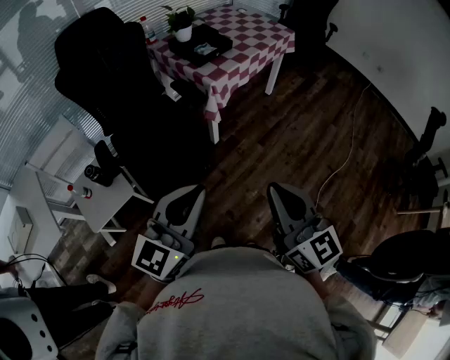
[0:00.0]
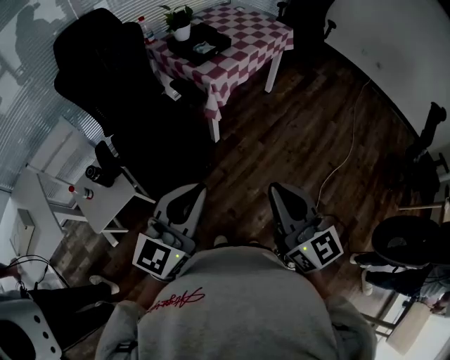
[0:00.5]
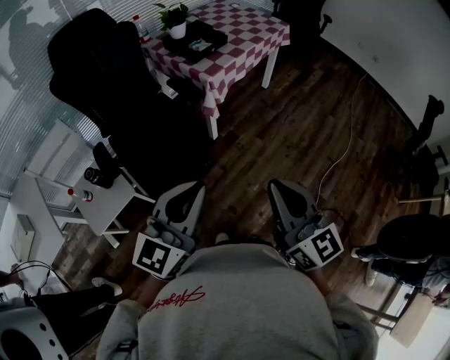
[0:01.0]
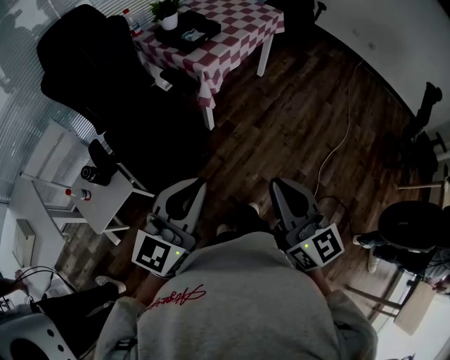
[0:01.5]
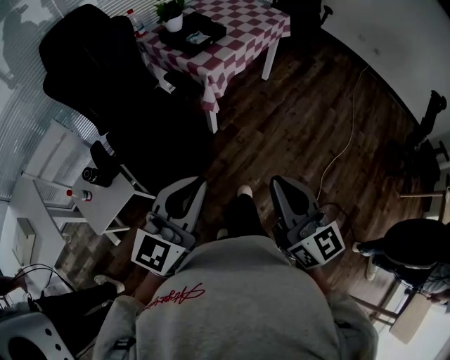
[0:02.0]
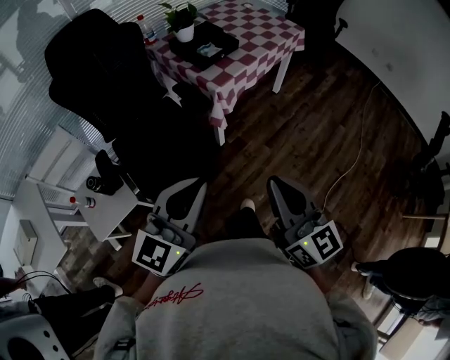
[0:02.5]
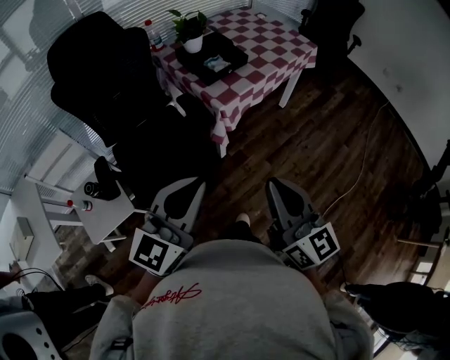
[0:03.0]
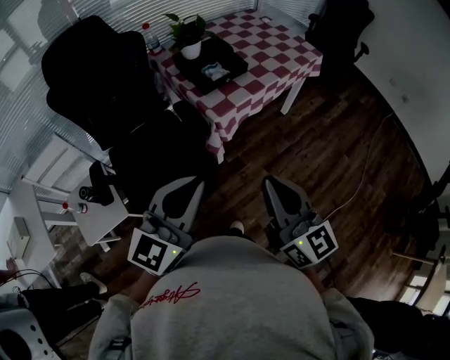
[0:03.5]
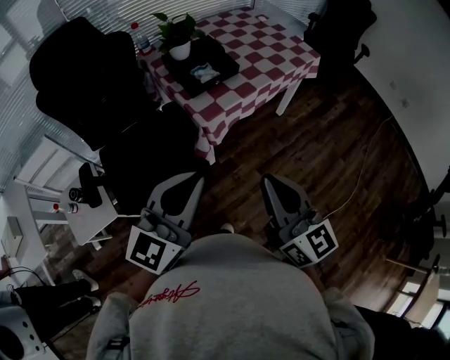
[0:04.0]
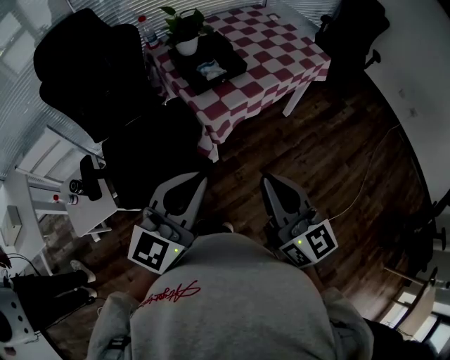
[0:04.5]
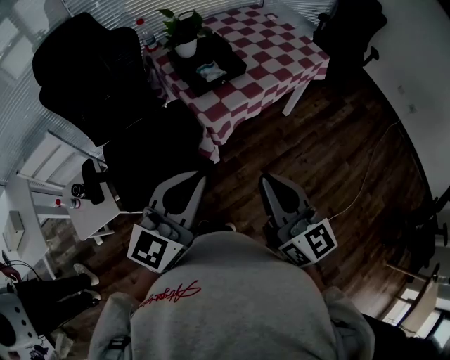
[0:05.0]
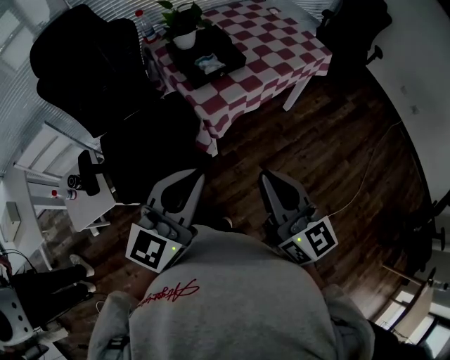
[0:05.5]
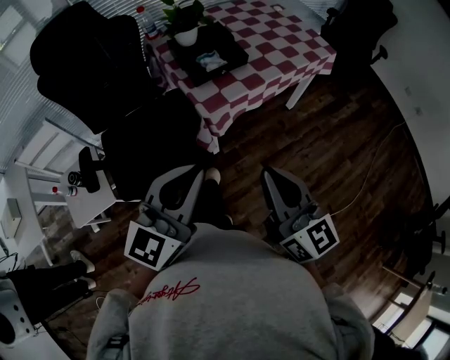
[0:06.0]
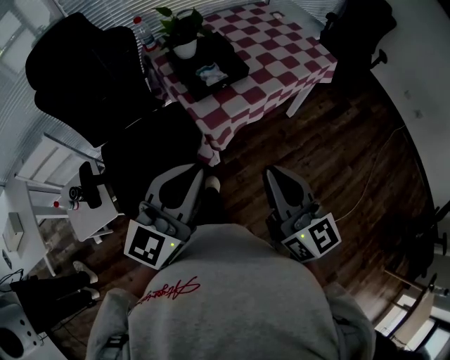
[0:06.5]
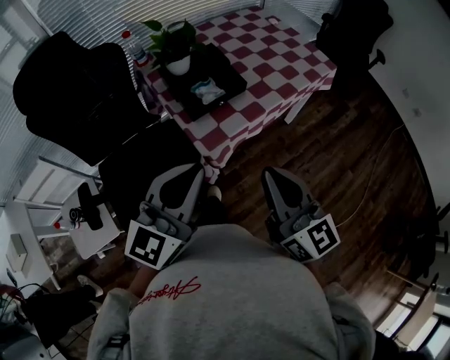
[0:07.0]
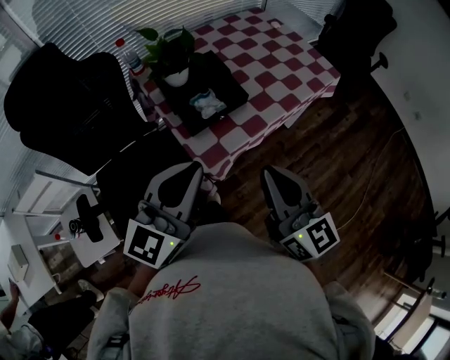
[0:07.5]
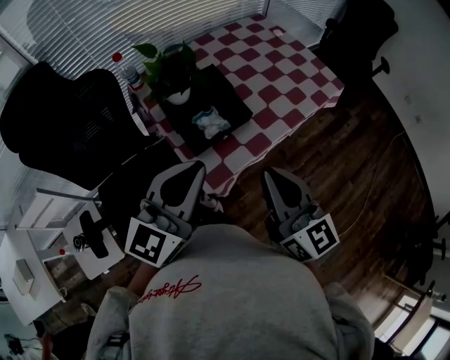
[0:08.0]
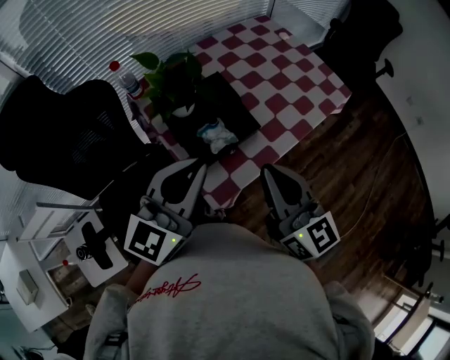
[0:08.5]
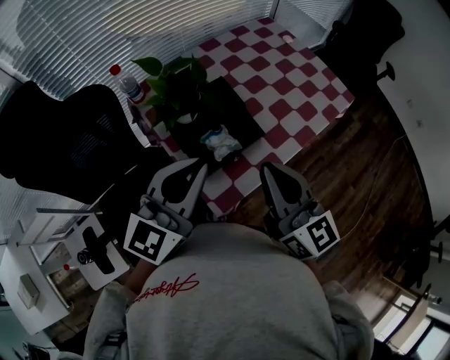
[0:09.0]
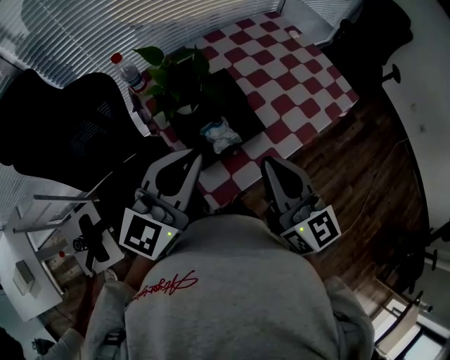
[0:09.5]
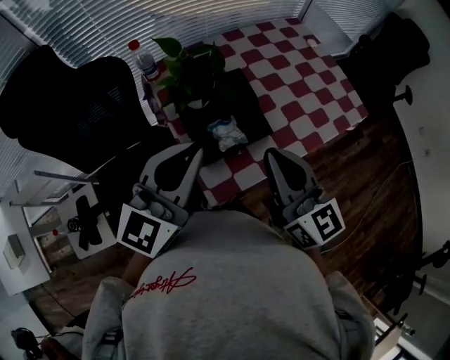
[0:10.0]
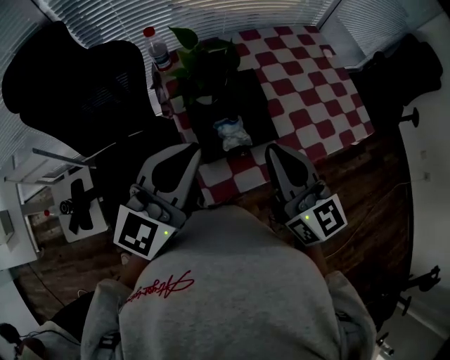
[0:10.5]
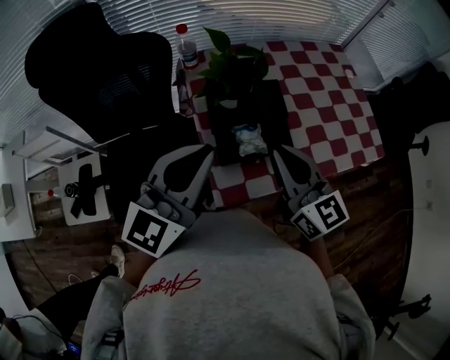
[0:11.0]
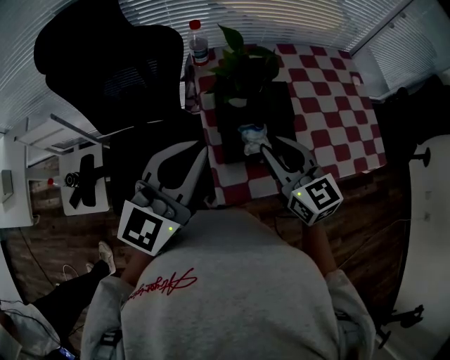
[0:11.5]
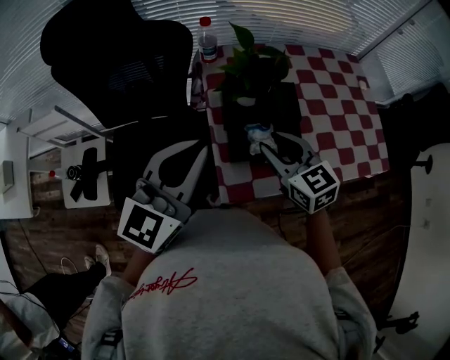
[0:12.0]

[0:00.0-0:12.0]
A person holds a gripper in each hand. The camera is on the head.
0:00.0 to 0:02.0: The grippers stay close to where they were, moving slightly.
0:02.0 to 0:04.0: Both grippers travel together forward, about 30 cm.
0:04.0 to 0:06.0: There are only small adjustments of the grippers.
0:06.0 to 0:08.0: Both grippers move forward, approximately 25 cm.
0:08.0 to 0:10.0: The two grippers go about 10 cm forward.
0:10.0 to 0:12.0: The left gripper is displaced to the left by about 10 cm, while the right gripper heads downward, forward and to the left, covering roughly 15 cm, turns by about 40 degrees, and opens its fingers.

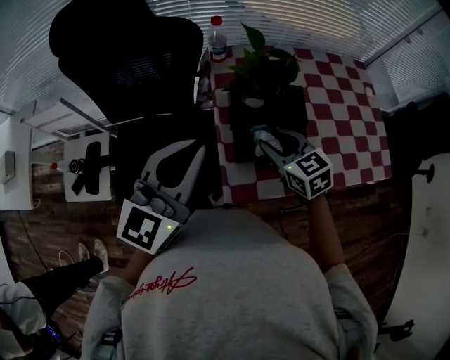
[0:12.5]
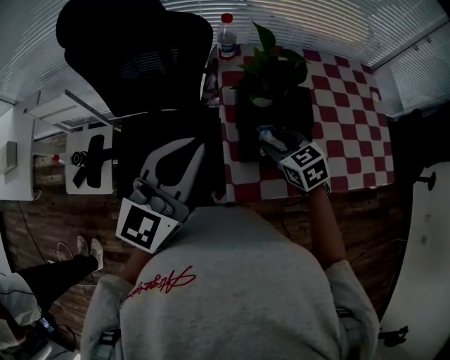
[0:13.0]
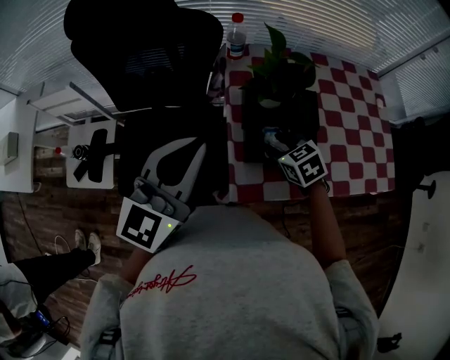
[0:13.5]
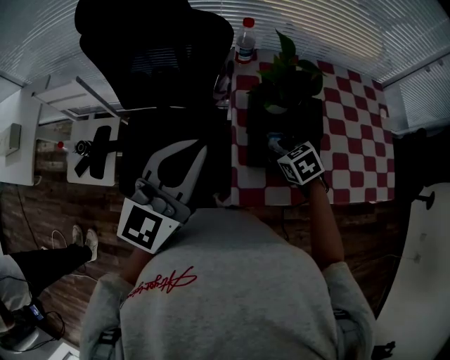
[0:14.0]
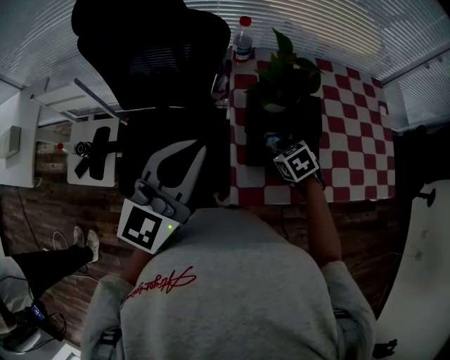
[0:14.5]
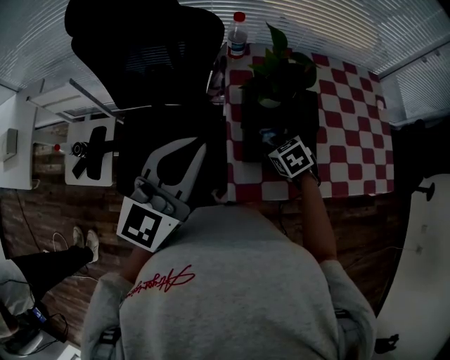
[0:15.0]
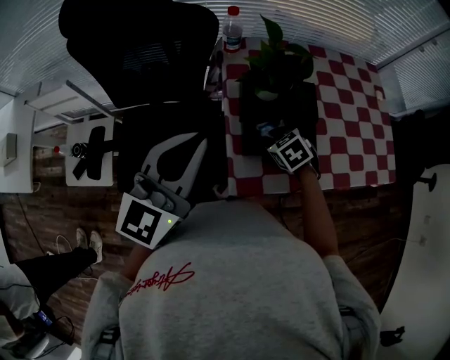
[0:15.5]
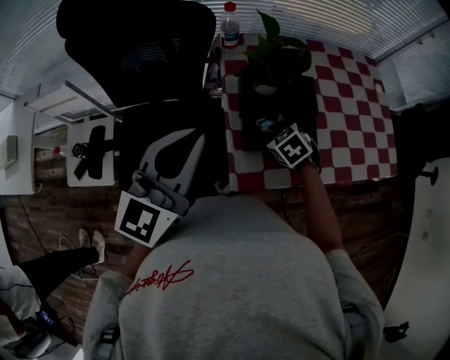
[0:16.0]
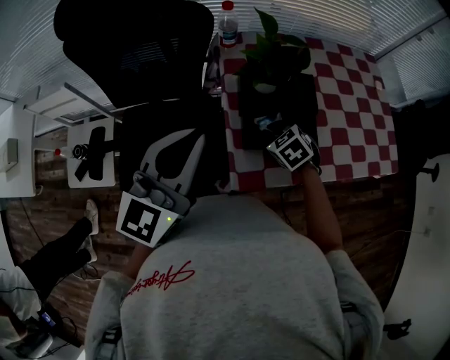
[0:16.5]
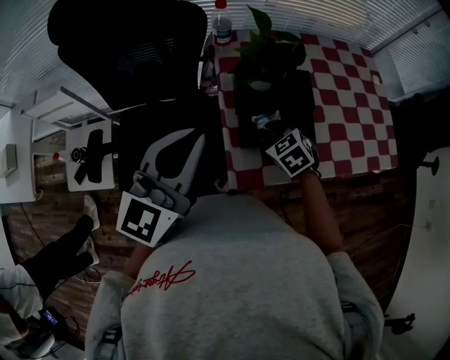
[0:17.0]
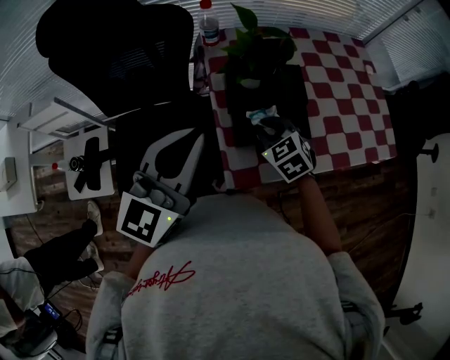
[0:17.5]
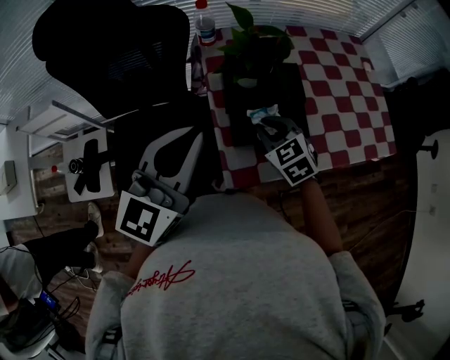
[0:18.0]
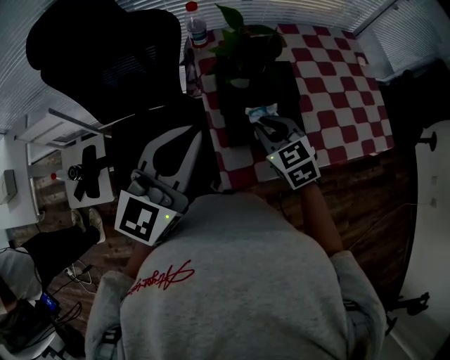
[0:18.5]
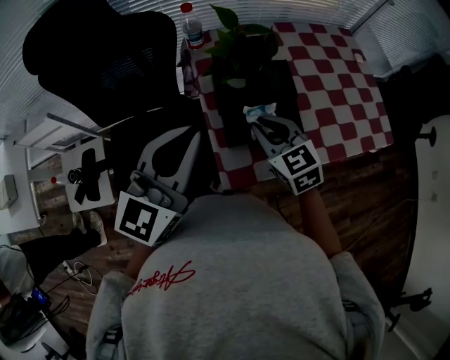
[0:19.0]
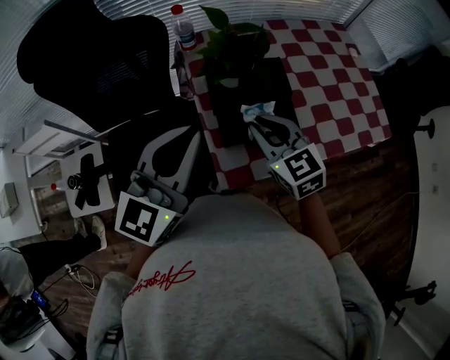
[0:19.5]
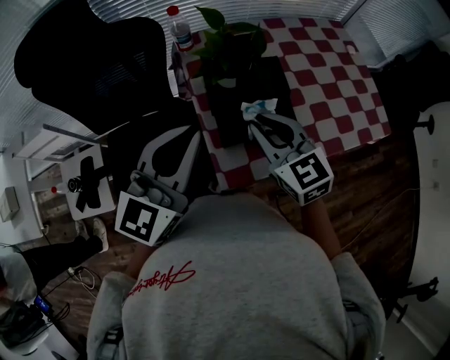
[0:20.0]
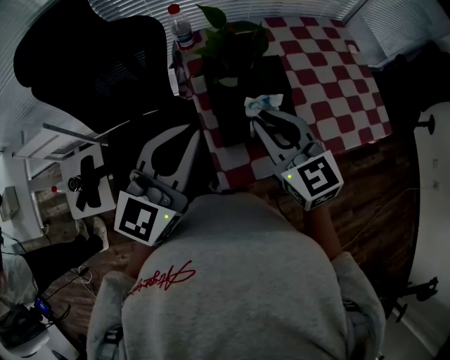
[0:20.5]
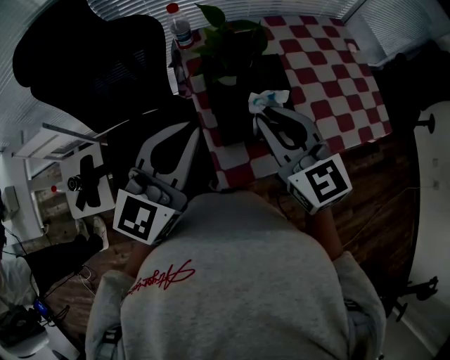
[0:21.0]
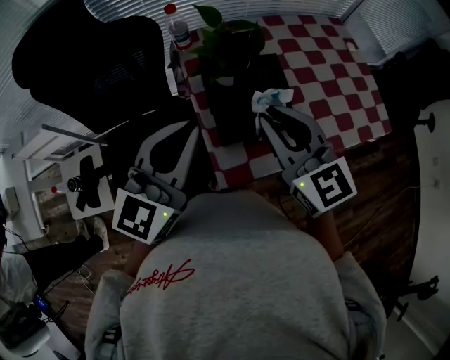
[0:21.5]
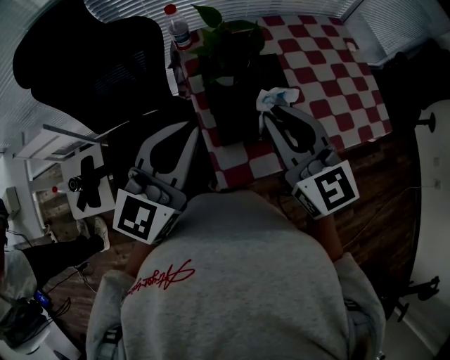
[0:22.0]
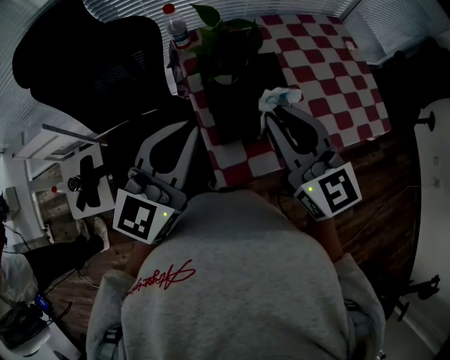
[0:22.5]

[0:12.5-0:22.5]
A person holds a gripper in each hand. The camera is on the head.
0:12.5 to 0:14.5: The right gripper moves downward, approximately 10 cm, and rotates about 30 degrees.
0:14.5 to 0:16.5: The right gripper closes its fingers.
0:16.5 to 0:18.5: The right gripper goes about 10 cm upward, and swivels roughly 20 degrees.
0:18.5 to 0:20.5: The right gripper goes approximately 10 cm upward, and swivels approximately 20 degrees.
0:20.5 to 0:22.5: The right gripper travels upward by some 5 cm.

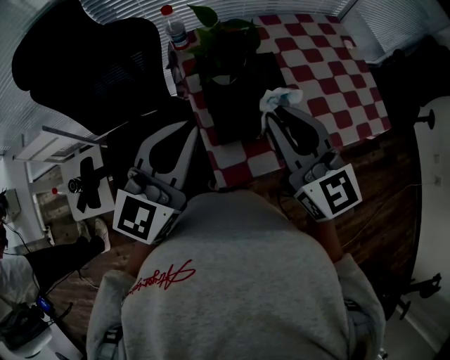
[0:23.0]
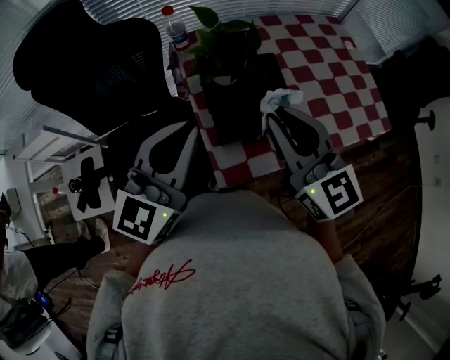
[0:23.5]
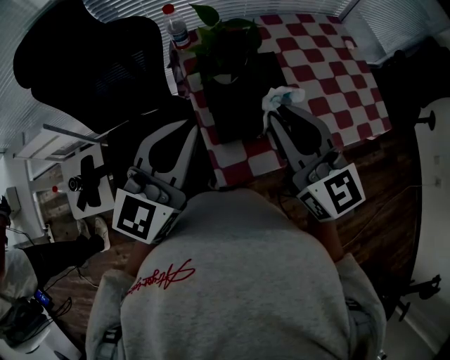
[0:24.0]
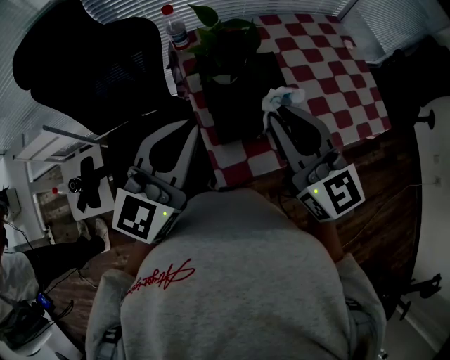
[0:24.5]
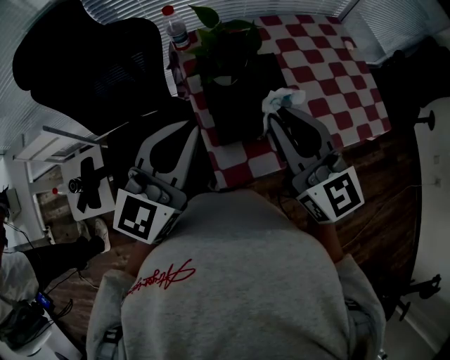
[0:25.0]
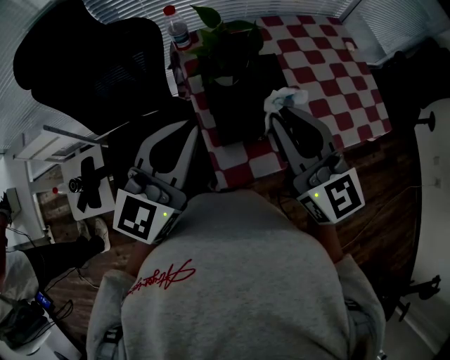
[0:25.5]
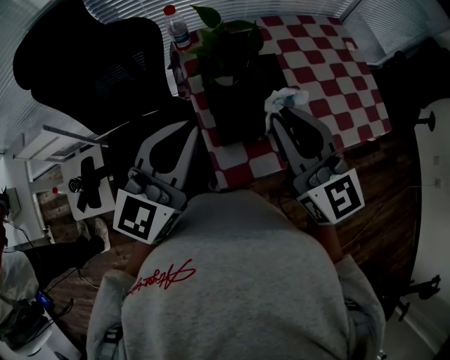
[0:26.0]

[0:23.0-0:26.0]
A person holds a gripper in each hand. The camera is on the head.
0:23.0 to 0:26.0: Both grippers stay about where they are.

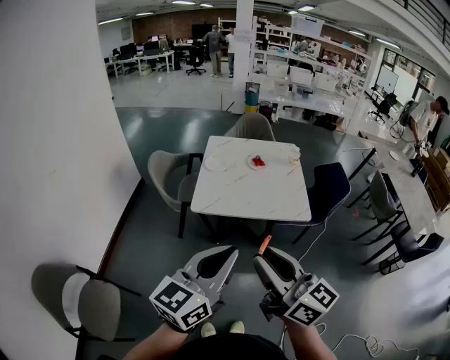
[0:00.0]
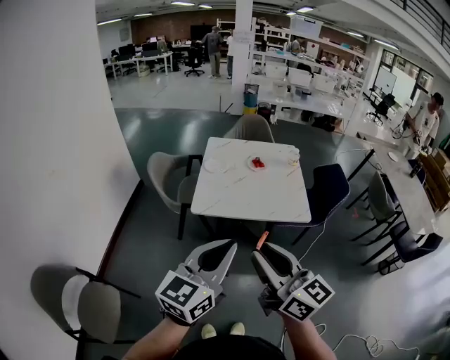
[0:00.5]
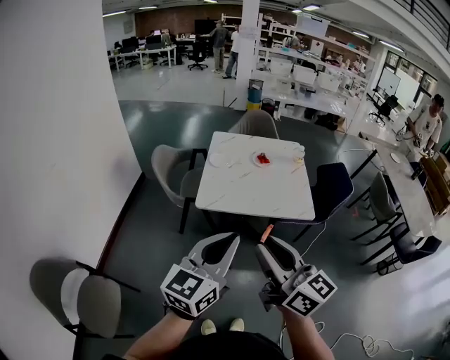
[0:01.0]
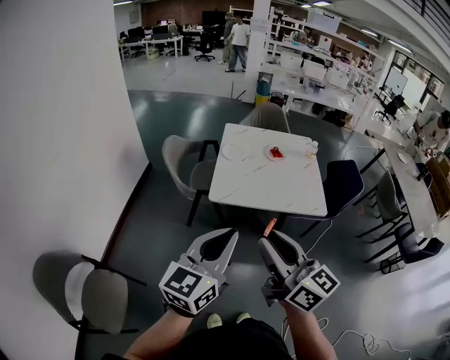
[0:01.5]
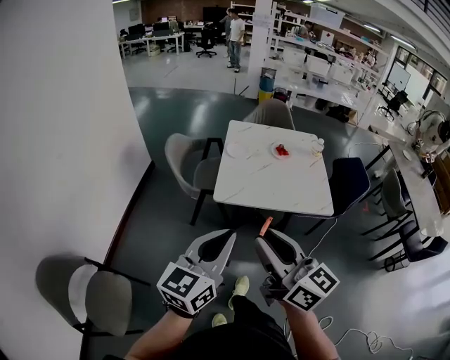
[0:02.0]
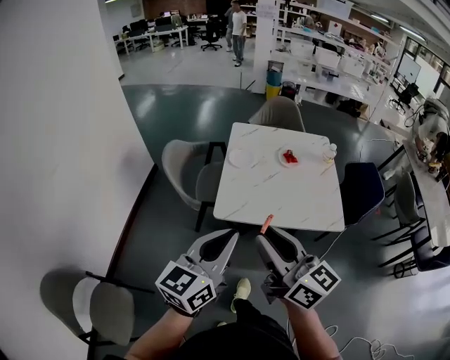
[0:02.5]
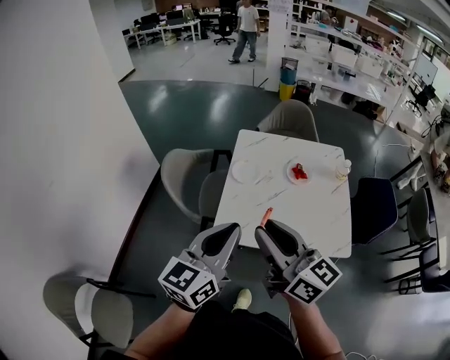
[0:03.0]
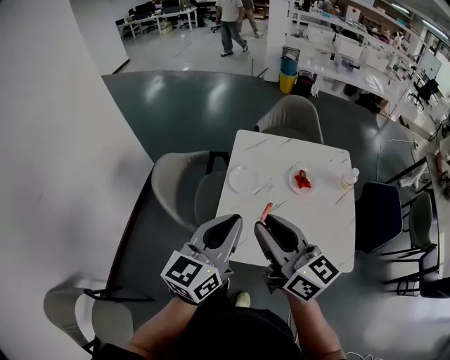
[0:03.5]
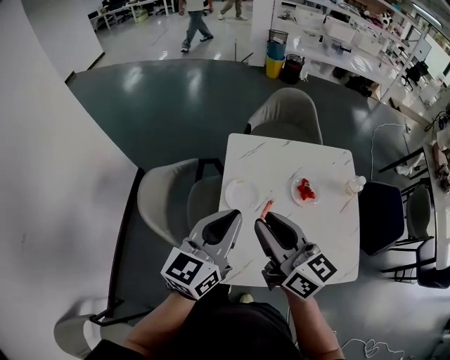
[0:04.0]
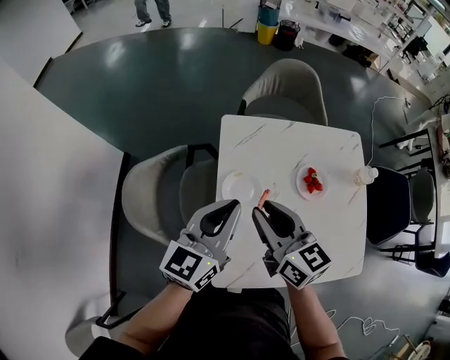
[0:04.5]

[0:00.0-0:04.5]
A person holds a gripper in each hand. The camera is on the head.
0:00.0 to 0:02.0: The left gripper moves to the left, forward and downward, roughly 15 cm, while the right gripper shifts approximately 15 cm to the left and forward.
0:02.0 to 0:04.5: The pair of grippers is taken forward, approximately 70 cm. The right gripper turns by about 20 degrees.
